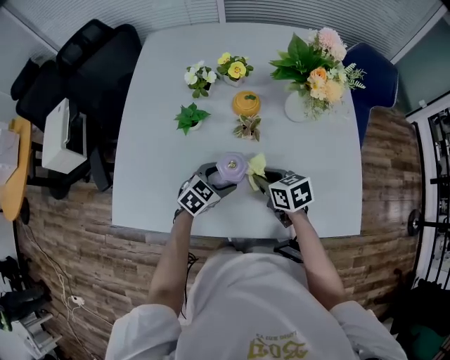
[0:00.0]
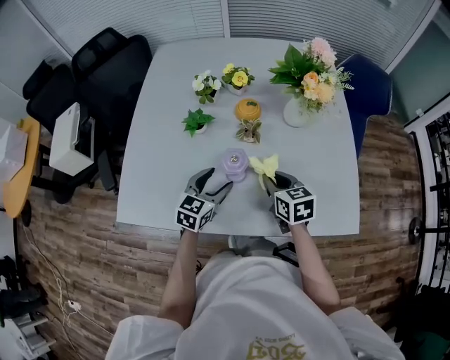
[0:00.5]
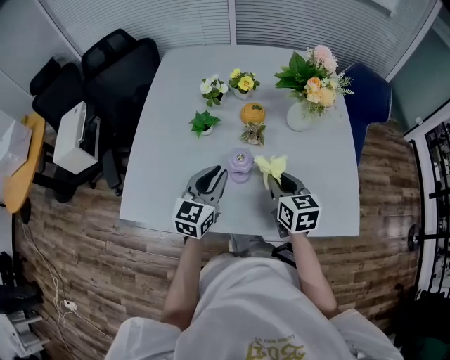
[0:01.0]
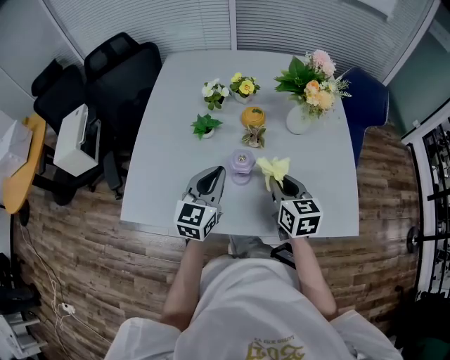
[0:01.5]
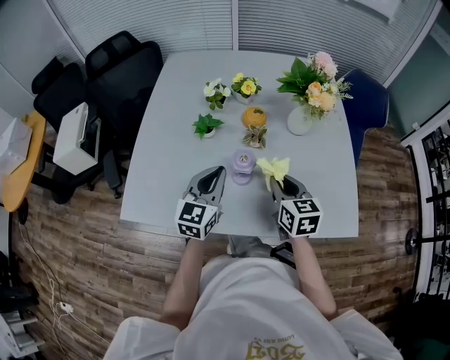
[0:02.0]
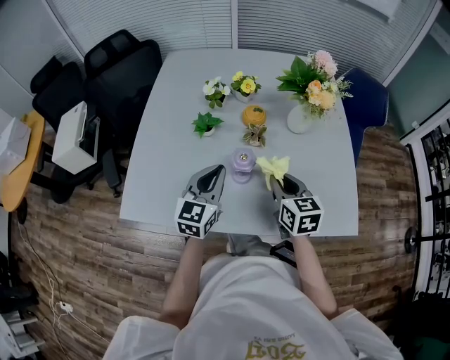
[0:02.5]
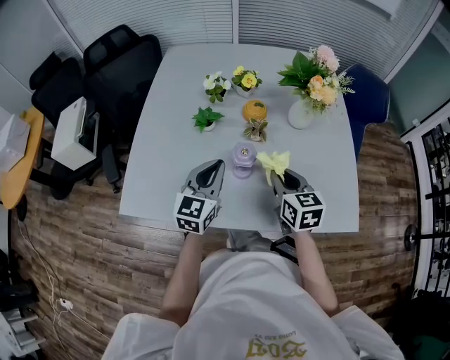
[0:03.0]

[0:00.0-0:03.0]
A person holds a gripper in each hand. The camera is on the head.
0.0 to 1.5 s: The left gripper moves upward, approximately 20 cm, tilts its fingers about 30 degrees upward, and closes its fingers. The right gripper is displaced upward by about 10 cm, and changes its angle by some 30 degrees.
1.5 to 3.0 s: Both grippers stay put.

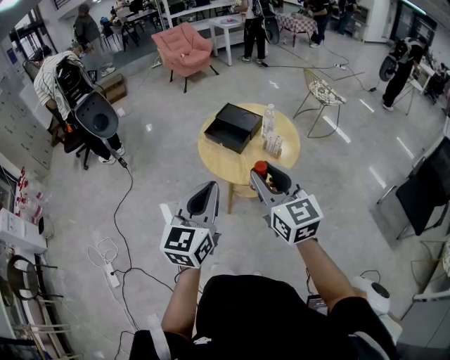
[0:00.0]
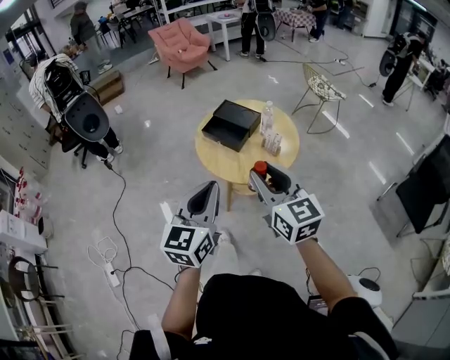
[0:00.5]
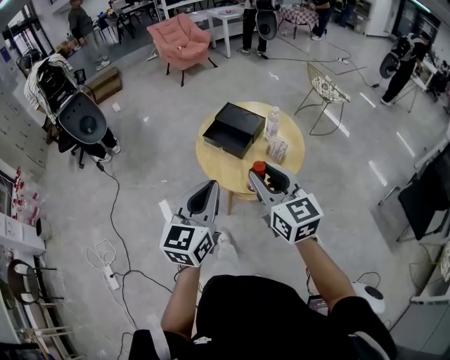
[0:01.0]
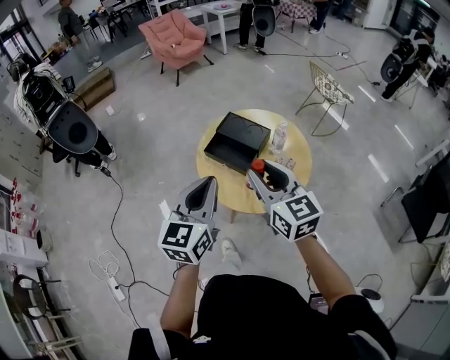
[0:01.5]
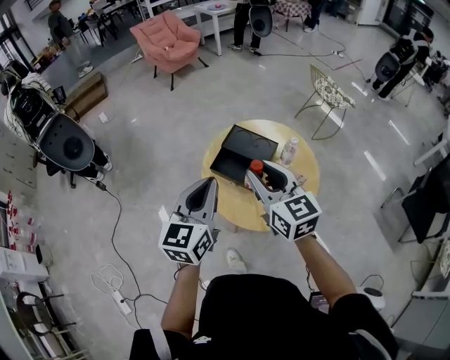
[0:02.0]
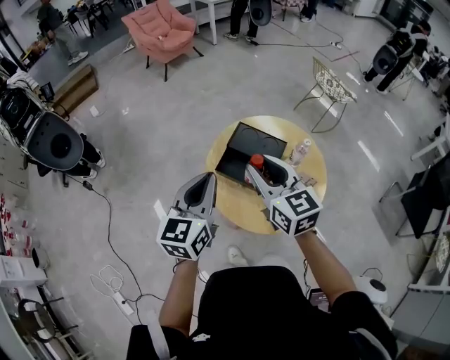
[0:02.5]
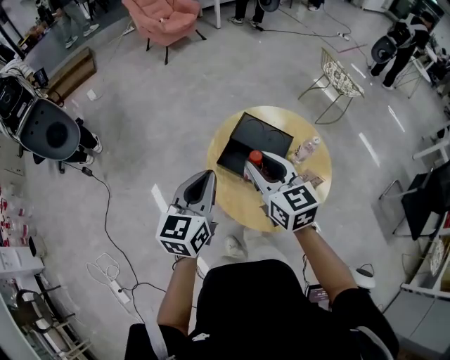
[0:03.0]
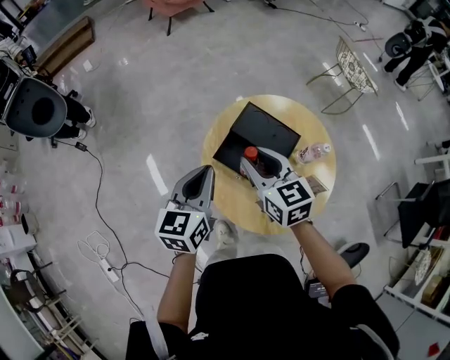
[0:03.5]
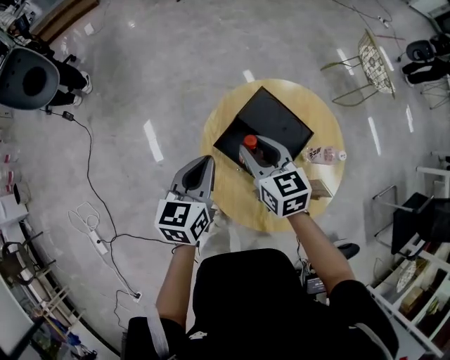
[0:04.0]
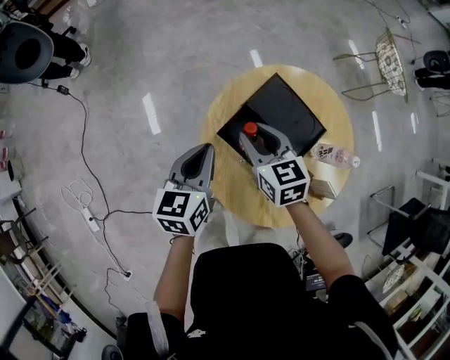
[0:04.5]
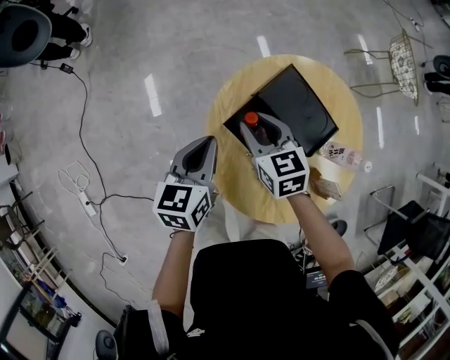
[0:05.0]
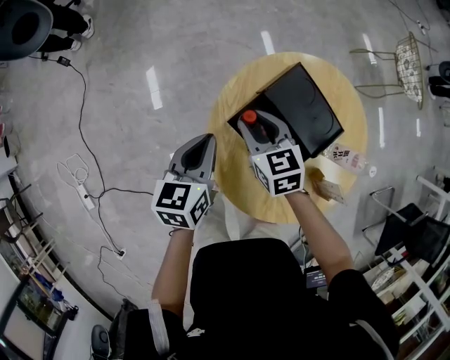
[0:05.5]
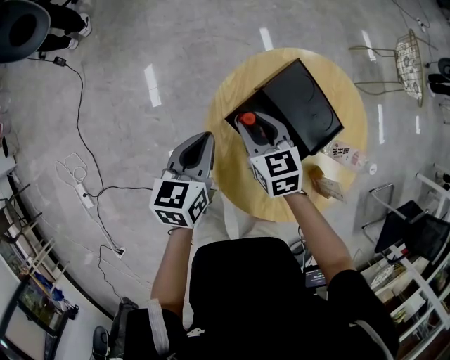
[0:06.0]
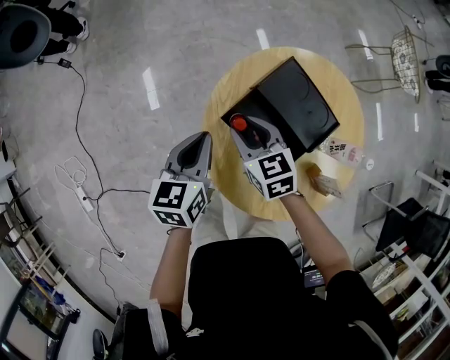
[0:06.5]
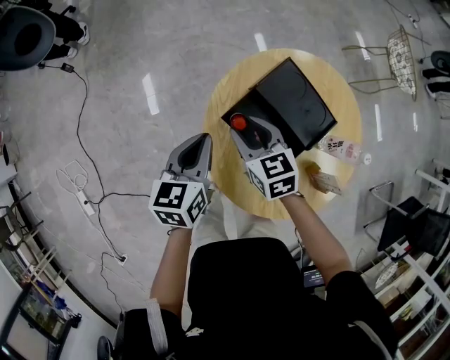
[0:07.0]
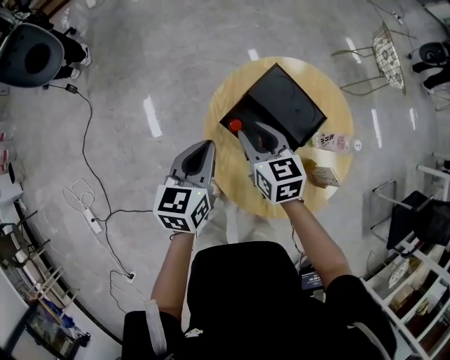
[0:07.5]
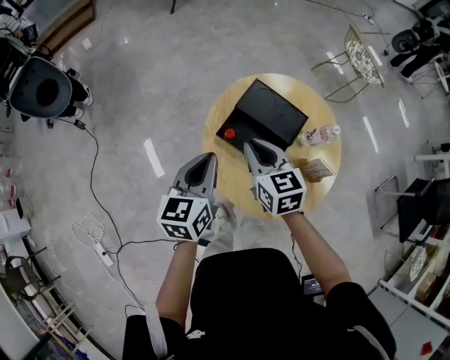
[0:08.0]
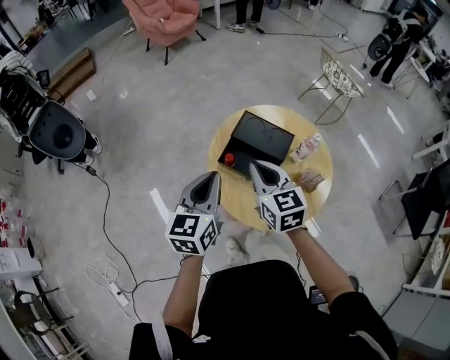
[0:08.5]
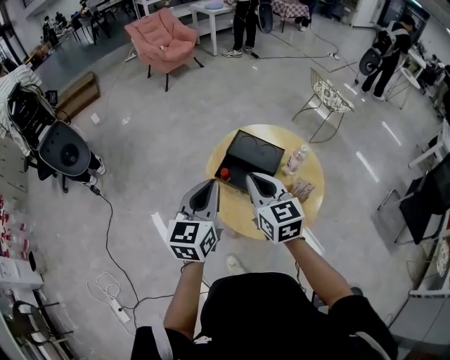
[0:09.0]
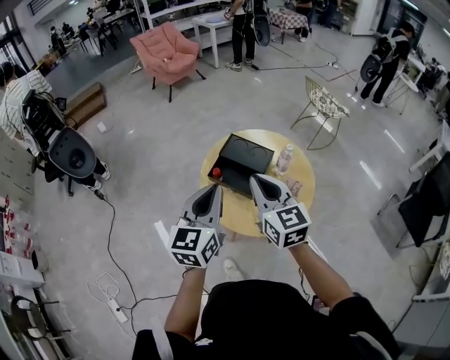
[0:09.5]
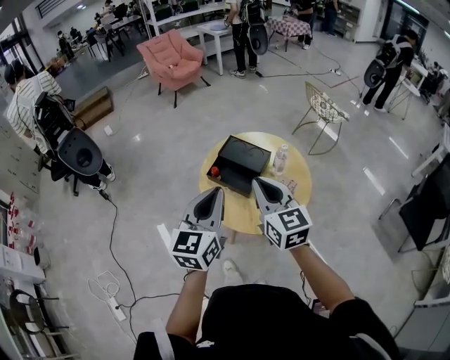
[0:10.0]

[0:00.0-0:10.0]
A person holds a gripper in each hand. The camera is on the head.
0.0 to 2.0 s: The grippers both shift forward by roughly 30 cm.
2.0 to 4.0 s: Both grippers travel together downward and forward, roughly 30 cm. The left gripper swivels approximately 30 degrees, while the right gripper swivels some 20 degrees.
4.0 to 6.0 s: The grippers both shift downward by approximately 10 cm.
6.0 to 8.0 s: The two grippers go roughly 15 cm upward and backward. The right gripper turns by approximately 20 degrees, and closes its fingers.
8.0 to 10.0 s: Both grippers travel together backward, upward and to the right, some 30 cm. The left gripper swivels some 20 degrees. Meanwhile the right gripper changes its angle by about 20 degrees.

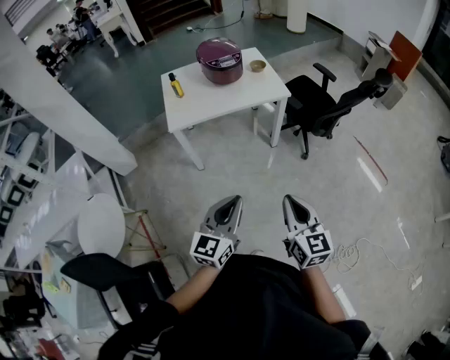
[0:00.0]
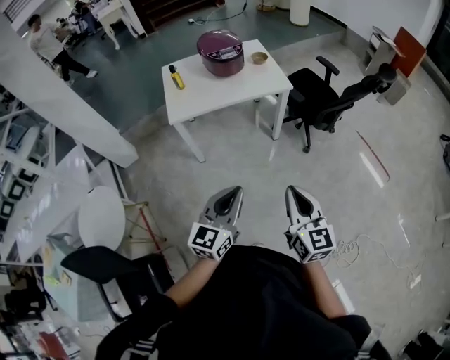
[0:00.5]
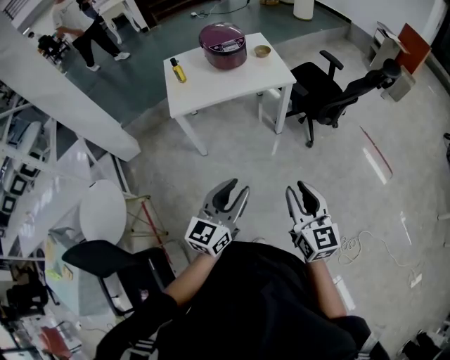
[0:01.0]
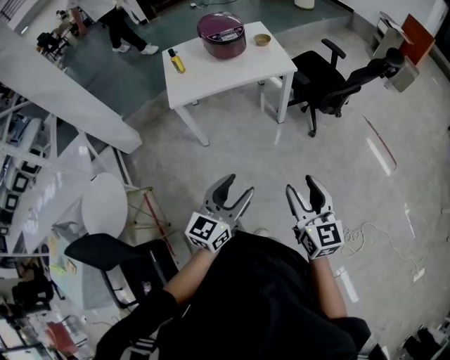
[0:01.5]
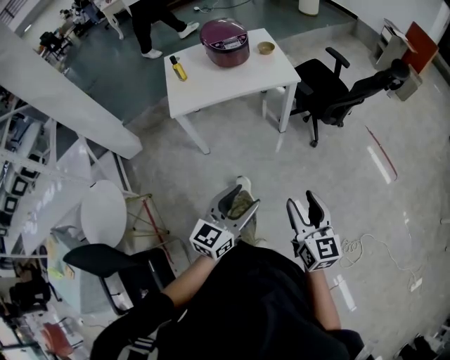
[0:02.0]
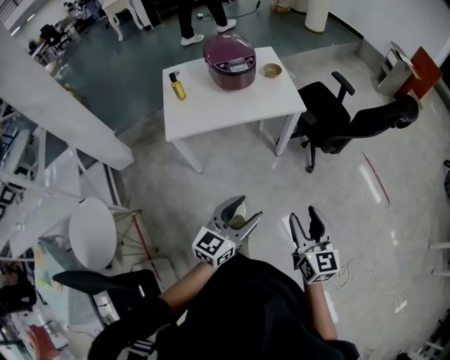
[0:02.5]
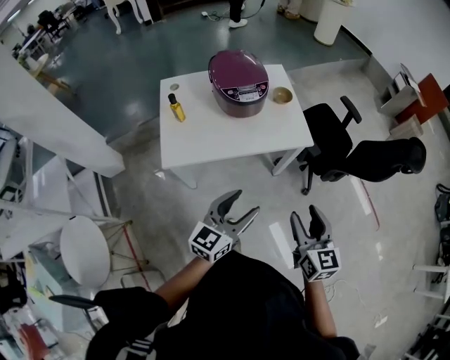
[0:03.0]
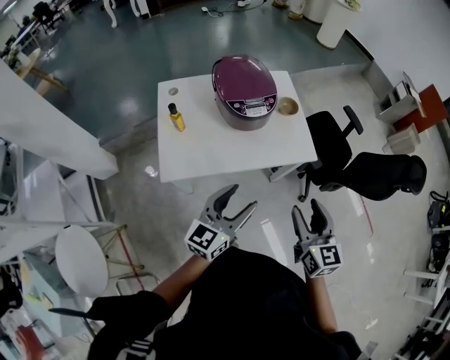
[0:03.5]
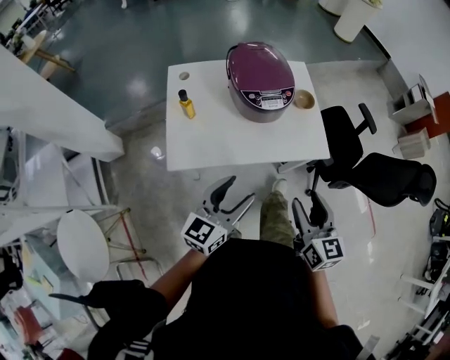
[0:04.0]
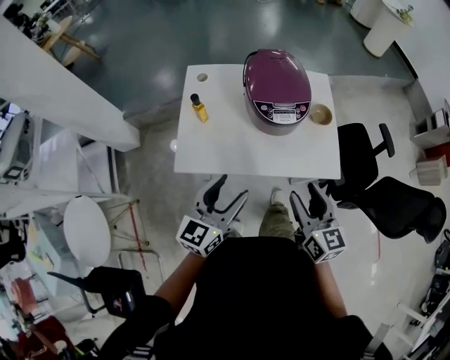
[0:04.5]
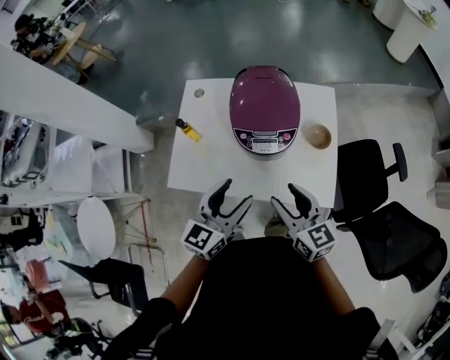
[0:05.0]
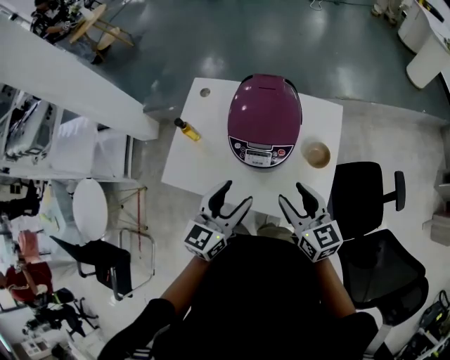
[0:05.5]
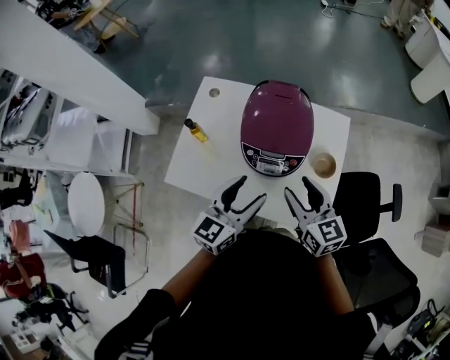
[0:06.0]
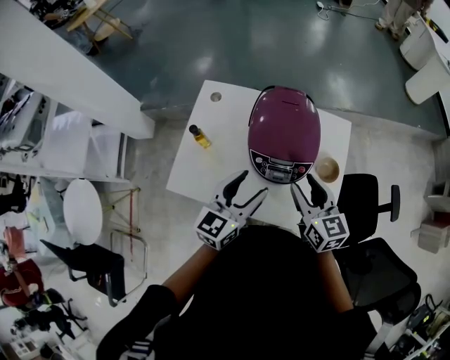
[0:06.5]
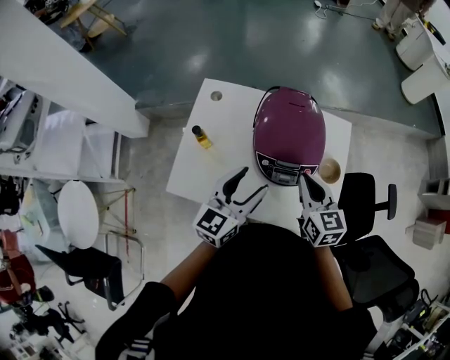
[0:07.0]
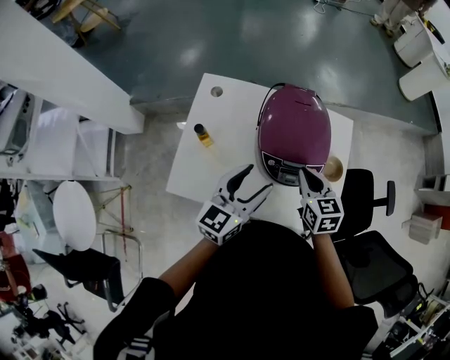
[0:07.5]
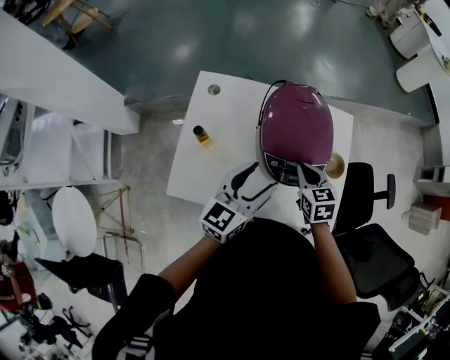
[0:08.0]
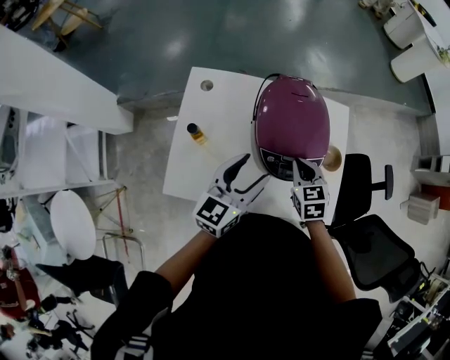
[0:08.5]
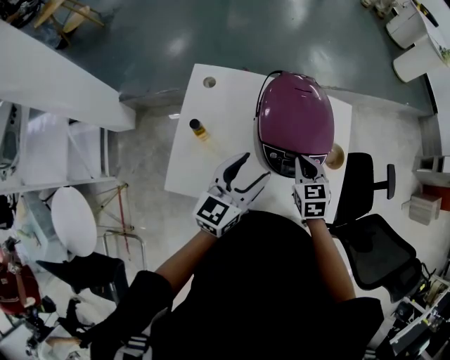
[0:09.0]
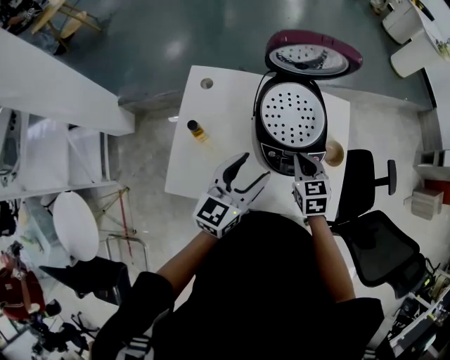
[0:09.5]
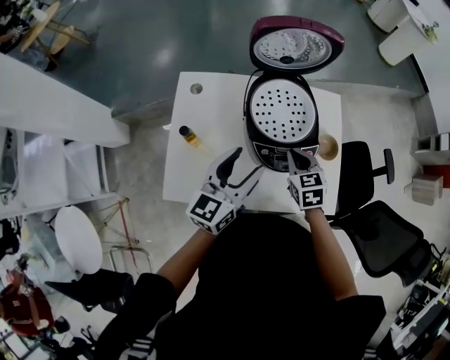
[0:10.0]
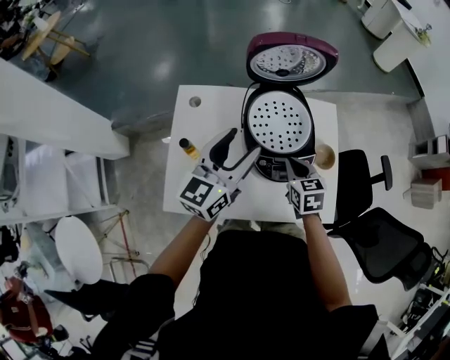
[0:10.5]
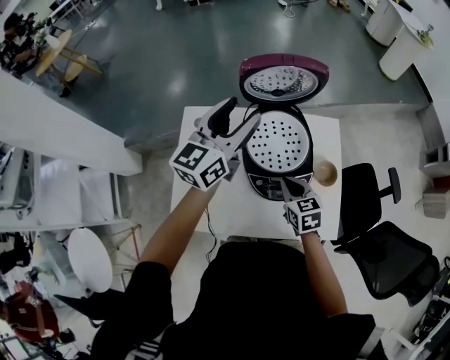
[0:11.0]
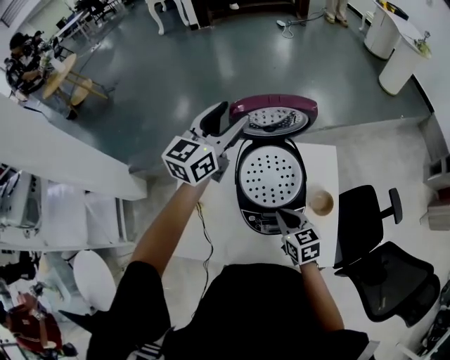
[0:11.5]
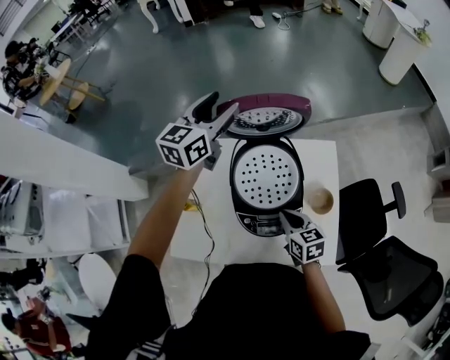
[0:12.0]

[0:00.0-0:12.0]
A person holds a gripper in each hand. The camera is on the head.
0.0 to 2.0 s: The right gripper shifts by some 5 cm, and opens, while the left gripper ends up roughly 5 cm from where it was, and opens up.
2.0 to 4.0 s: Both grippers are carried forward and to the left, roughly 50 cm.
4.0 to 6.0 s: The left gripper changes place by some 25 cm, and turns by roughly 20 degrees. Meanwhile the right gripper shifts by roughly 30 cm, and turns by roughly 40 degrees.
6.0 to 8.0 s: The left gripper heads to the left and forward, covering roughly 10 cm. The right gripper goes about 15 cm downward, forward and to the left, turns by about 30 degrees, and closes up.
8.0 to 10.0 s: There are only small adjustments of the grippers.
10.0 to 12.0 s: The left gripper is displaced forward by some 30 cm, while the right gripper turns by approximately 20 degrees.

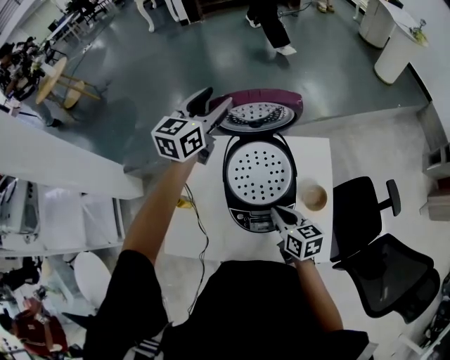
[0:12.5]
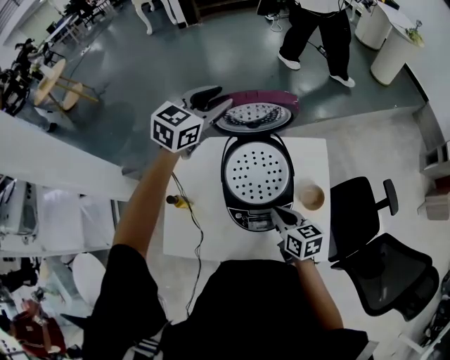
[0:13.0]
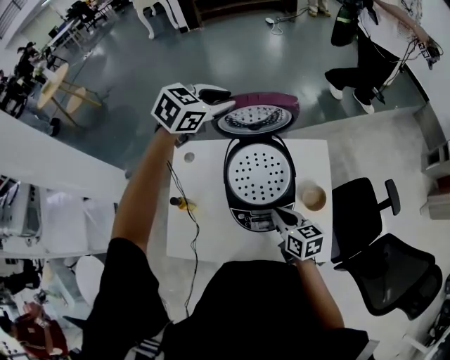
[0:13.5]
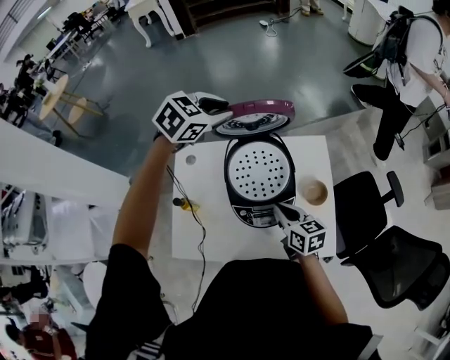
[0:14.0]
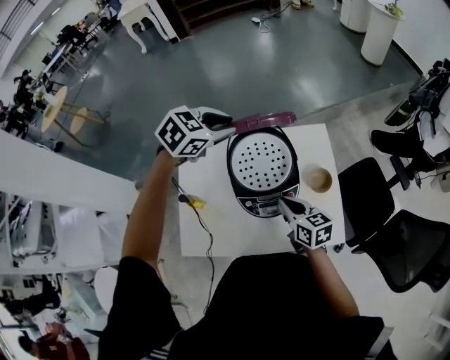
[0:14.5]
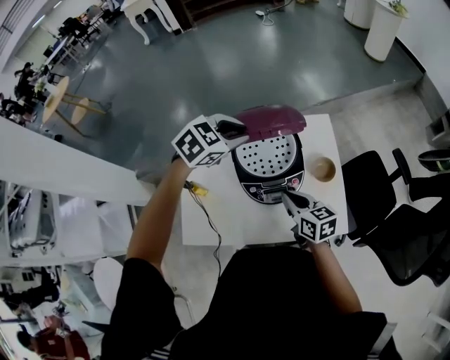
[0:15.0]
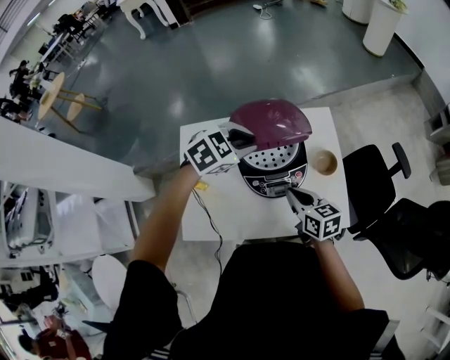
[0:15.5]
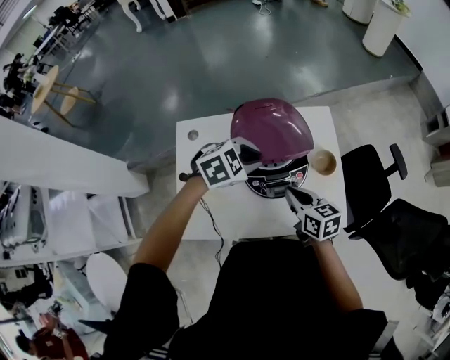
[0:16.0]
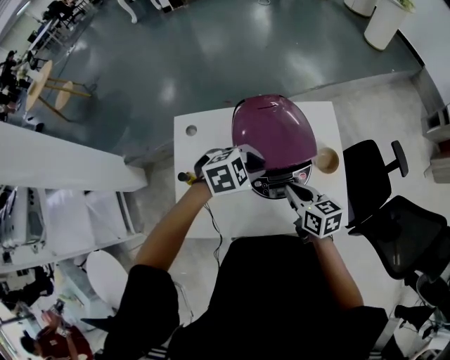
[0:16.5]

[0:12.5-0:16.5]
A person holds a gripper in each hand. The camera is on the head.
12.5 to 14.5 s: The left gripper heads backward and to the right, covering about 10 cm, points its fingers roughly 40 degrees further downward, and closes.
14.5 to 16.5 s: The left gripper travels downward, backward and to the right by about 20 cm.
